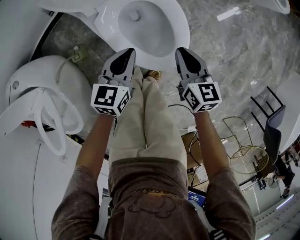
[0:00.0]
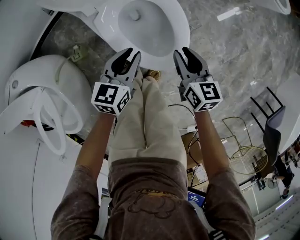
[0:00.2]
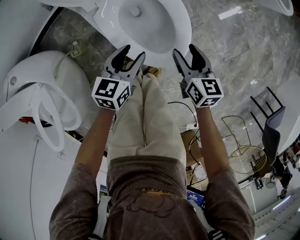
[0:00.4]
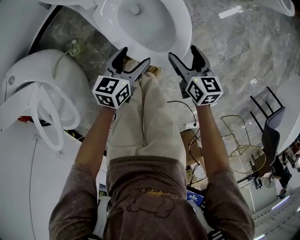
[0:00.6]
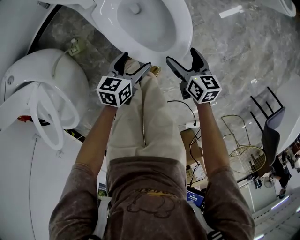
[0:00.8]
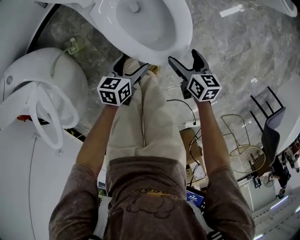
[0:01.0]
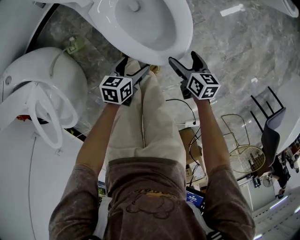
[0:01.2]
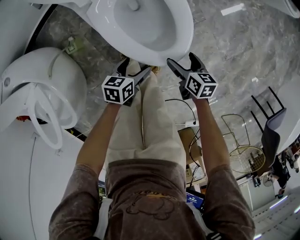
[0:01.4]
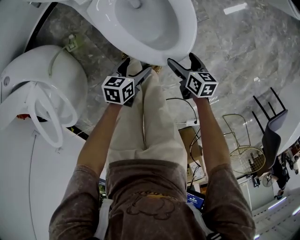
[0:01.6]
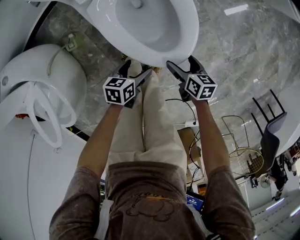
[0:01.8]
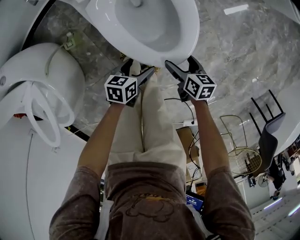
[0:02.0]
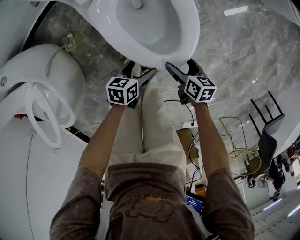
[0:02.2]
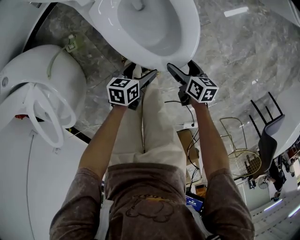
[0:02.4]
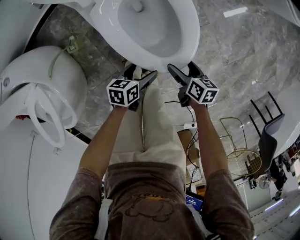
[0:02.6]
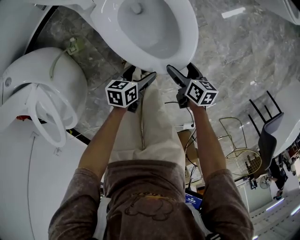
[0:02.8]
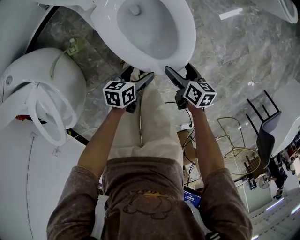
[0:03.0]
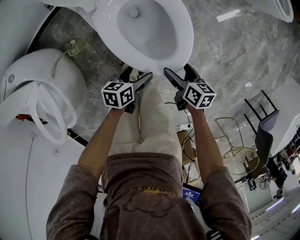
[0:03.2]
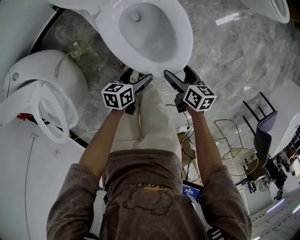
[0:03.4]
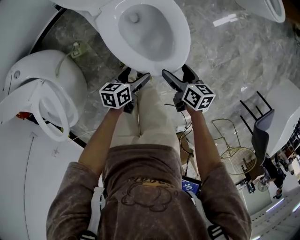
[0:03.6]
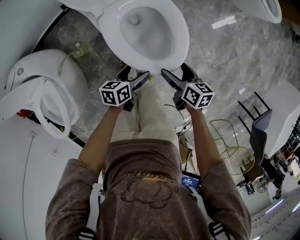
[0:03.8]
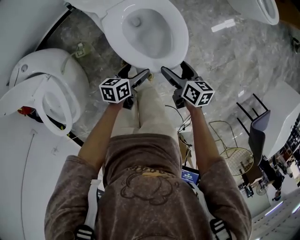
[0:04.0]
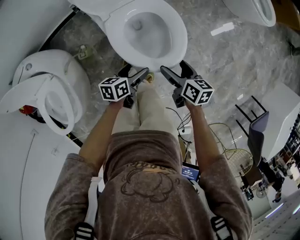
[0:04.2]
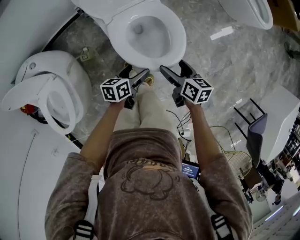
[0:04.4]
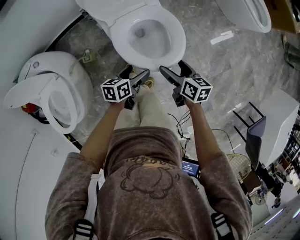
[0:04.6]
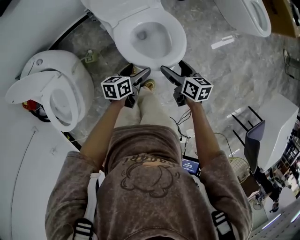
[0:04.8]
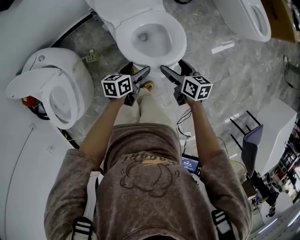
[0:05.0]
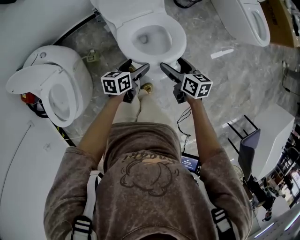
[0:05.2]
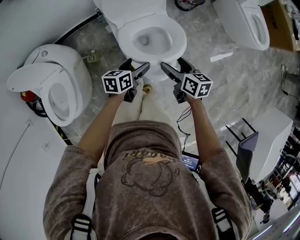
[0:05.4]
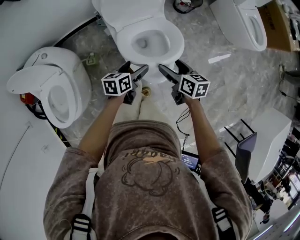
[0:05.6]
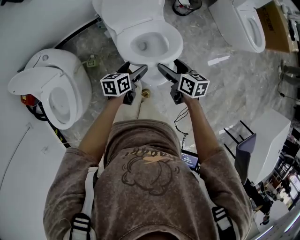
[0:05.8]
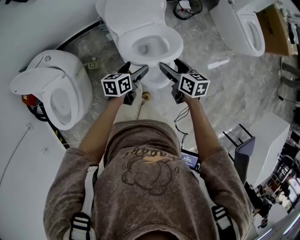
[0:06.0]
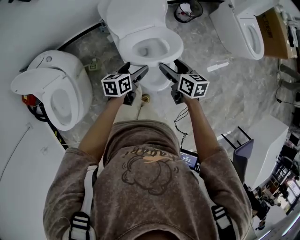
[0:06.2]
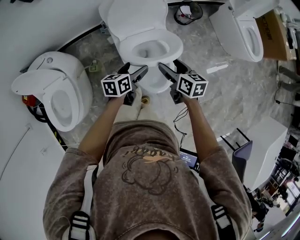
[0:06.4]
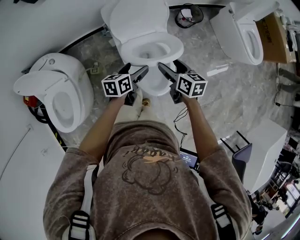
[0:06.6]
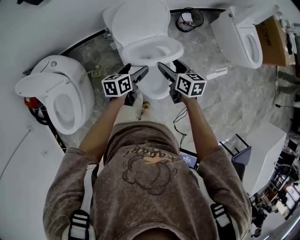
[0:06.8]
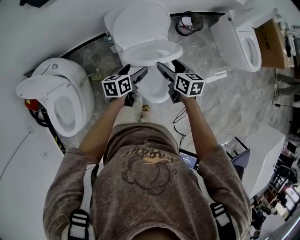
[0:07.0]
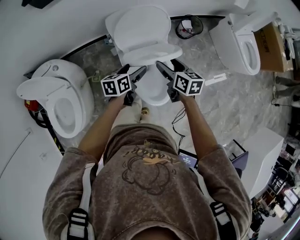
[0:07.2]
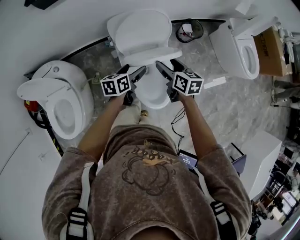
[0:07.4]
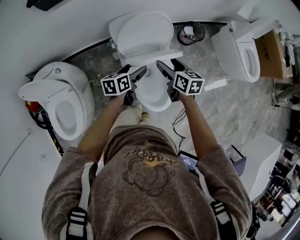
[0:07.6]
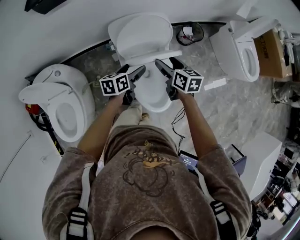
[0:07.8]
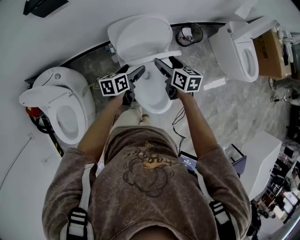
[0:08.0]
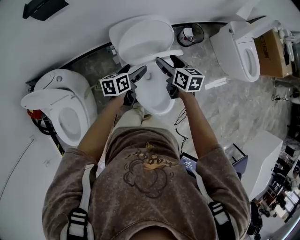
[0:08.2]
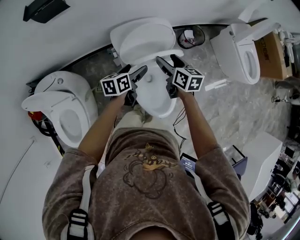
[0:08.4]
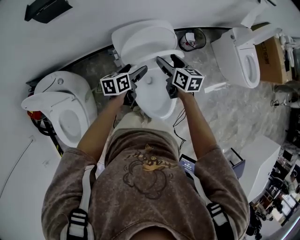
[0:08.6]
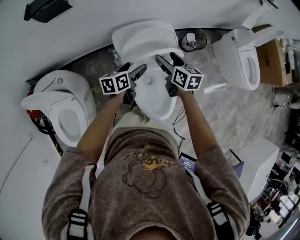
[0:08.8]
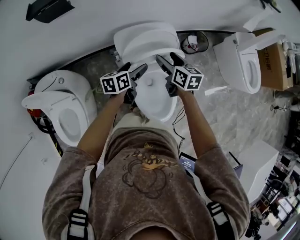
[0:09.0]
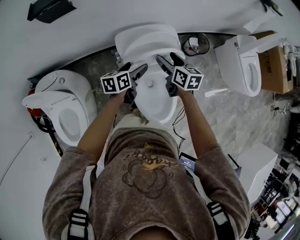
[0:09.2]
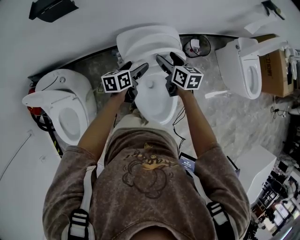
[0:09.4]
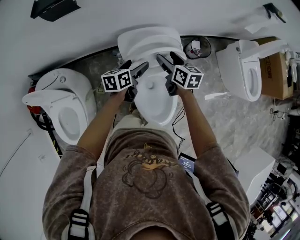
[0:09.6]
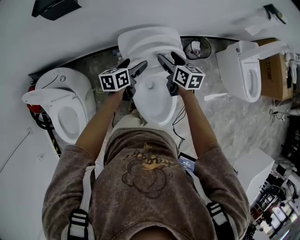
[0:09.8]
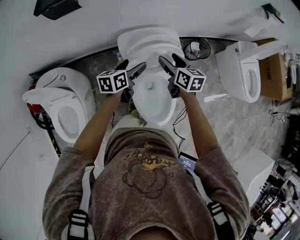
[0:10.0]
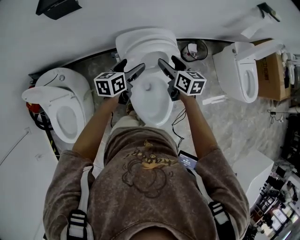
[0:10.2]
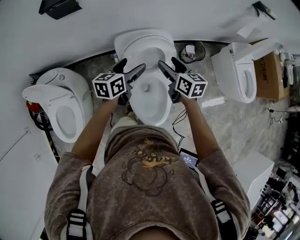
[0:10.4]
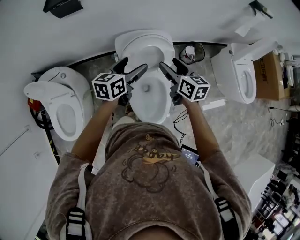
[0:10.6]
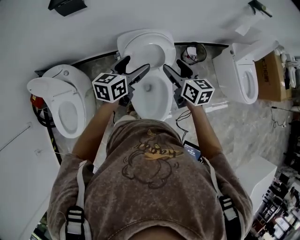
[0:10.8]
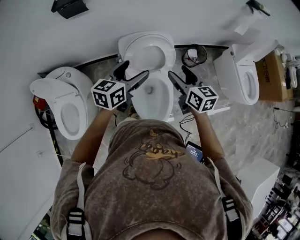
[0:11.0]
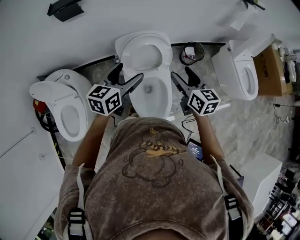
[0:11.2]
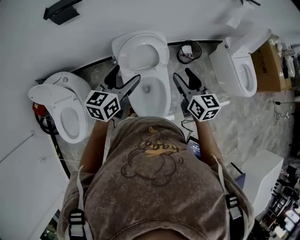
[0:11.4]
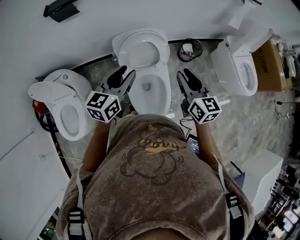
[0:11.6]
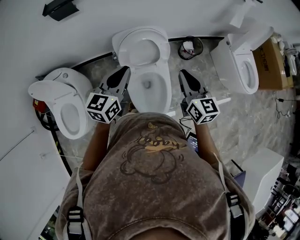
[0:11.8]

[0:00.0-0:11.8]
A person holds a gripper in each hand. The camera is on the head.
0:00.0 to 0:01.4: The two grippers go some 20 cm downward and backward. The left gripper rotates some 30 degrees, and opens its fingers. Meanwhile the right gripper swivels approximately 20 degrees, and opens its fingers.
0:01.4 to 0:03.0: There are only small adjustments of the grippers.
0:03.0 to 0:04.4: The two grippers go approximately 20 cm upward.
0:04.4 to 0:06.0: Both grippers move upward and forward, some 10 cm.
0:06.0 to 0:07.4: The left gripper shifts roughly 10 cm forward. Meanwhile the right gripper goes approximately 15 cm forward and upward.
0:07.4 to 0:08.8: Both grippers travel together forward, approximately 10 cm.
0:08.8 to 0:10.4: The left gripper is displaced upward by roughly 10 cm, while the right gripper is displaced upward by some 5 cm.
0:10.4 to 0:11.8: The right gripper shifts about 20 cm backward, upward and to the right, rotates about 20 degrees, and closes its fingers. The left gripper is displaced upward and backward by about 15 cm, rotates some 20 degrees, and closes its fingers.

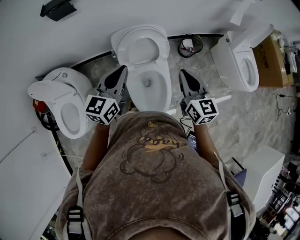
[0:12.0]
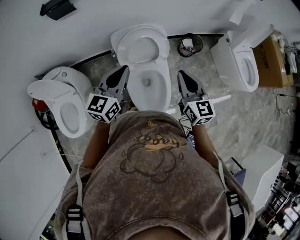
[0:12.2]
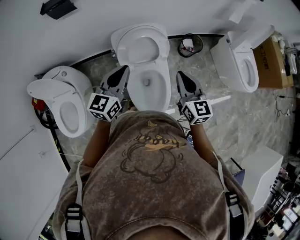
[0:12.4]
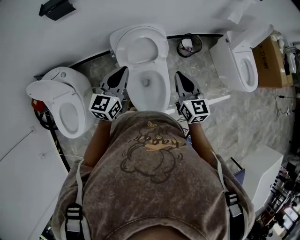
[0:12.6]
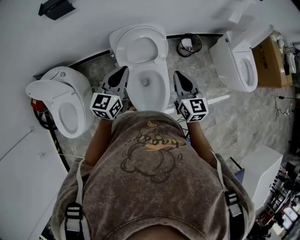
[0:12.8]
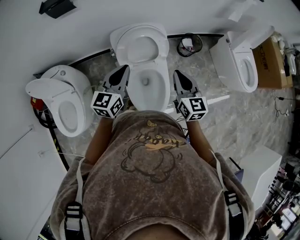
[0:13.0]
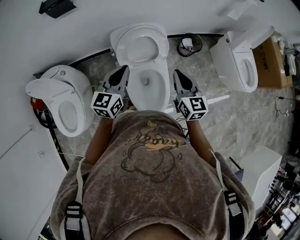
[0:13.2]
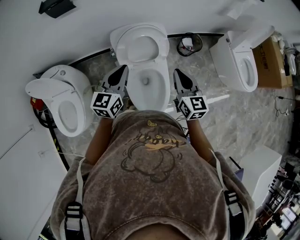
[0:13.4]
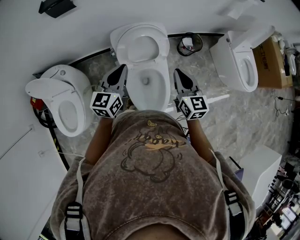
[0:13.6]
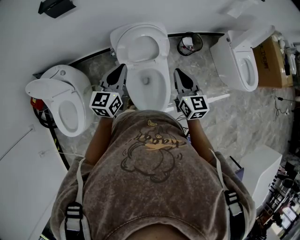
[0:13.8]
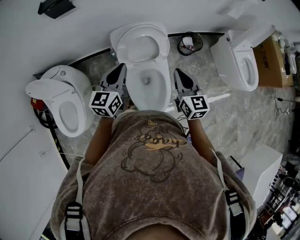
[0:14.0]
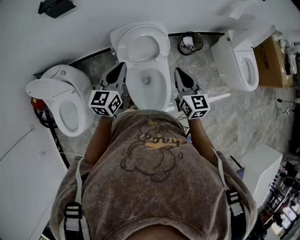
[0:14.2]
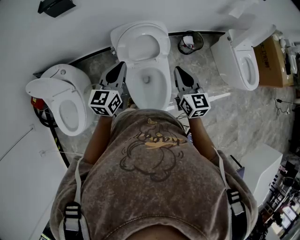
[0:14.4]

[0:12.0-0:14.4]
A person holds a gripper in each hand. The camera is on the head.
0:12.0 to 0:13.2: The left gripper moves downward, roughly 5 cm.
0:13.2 to 0:14.4: There are only small adjustments of the grippers.

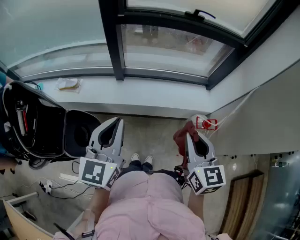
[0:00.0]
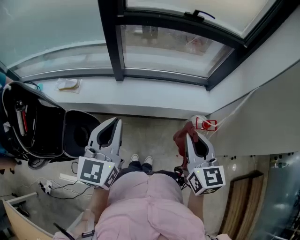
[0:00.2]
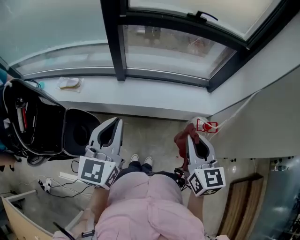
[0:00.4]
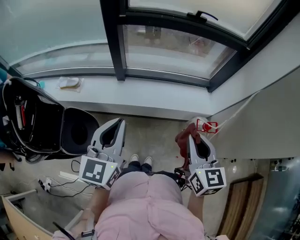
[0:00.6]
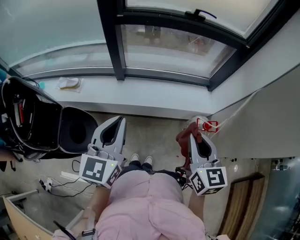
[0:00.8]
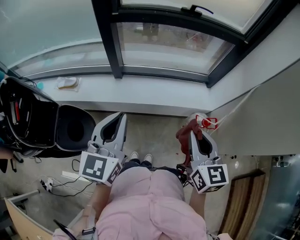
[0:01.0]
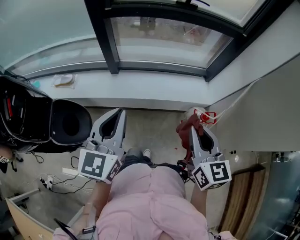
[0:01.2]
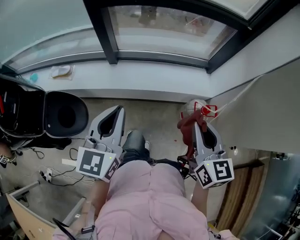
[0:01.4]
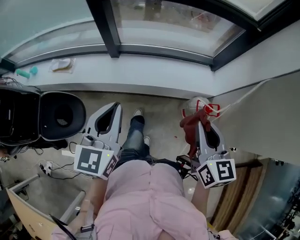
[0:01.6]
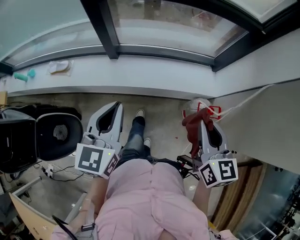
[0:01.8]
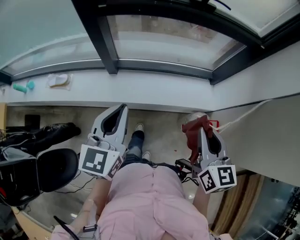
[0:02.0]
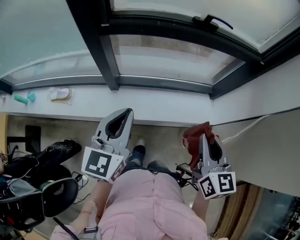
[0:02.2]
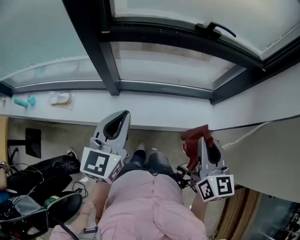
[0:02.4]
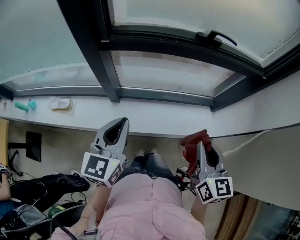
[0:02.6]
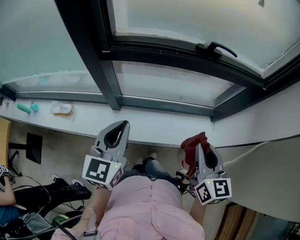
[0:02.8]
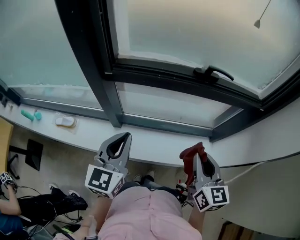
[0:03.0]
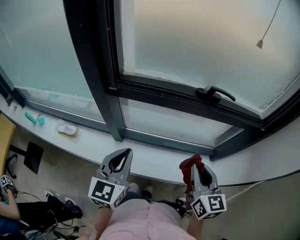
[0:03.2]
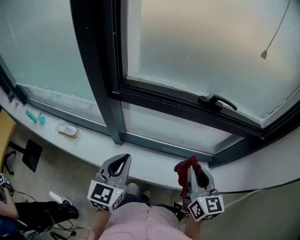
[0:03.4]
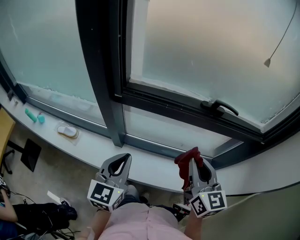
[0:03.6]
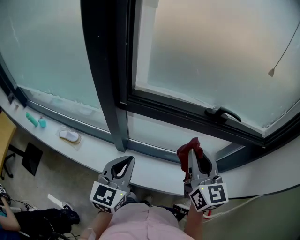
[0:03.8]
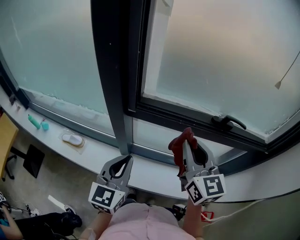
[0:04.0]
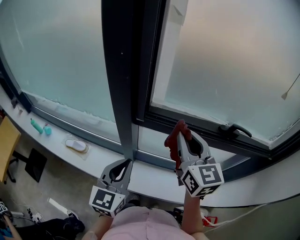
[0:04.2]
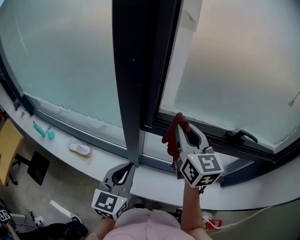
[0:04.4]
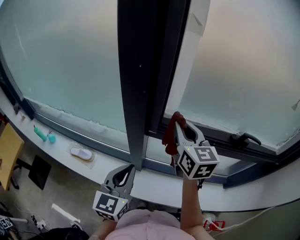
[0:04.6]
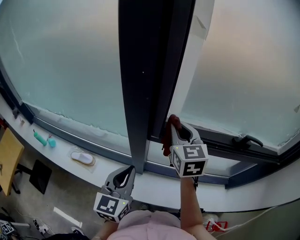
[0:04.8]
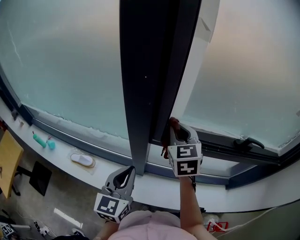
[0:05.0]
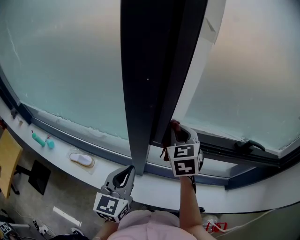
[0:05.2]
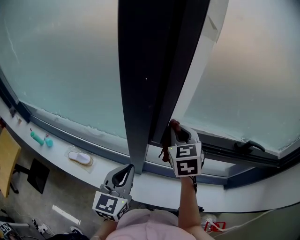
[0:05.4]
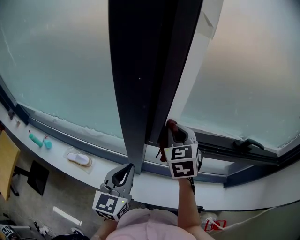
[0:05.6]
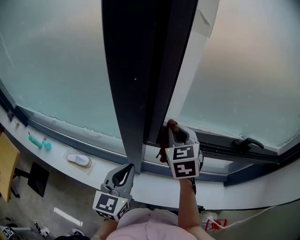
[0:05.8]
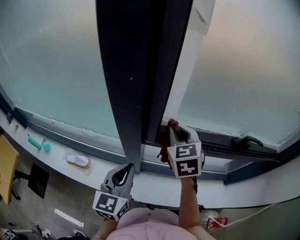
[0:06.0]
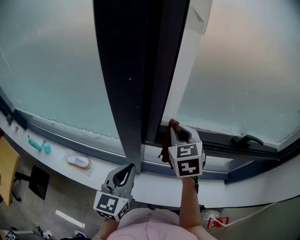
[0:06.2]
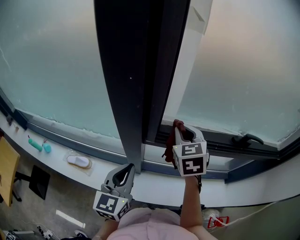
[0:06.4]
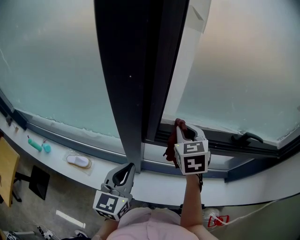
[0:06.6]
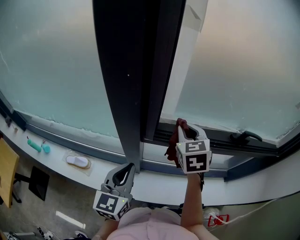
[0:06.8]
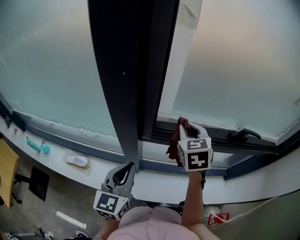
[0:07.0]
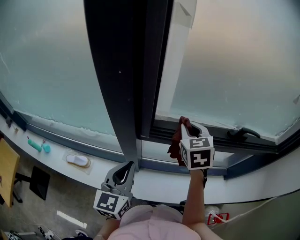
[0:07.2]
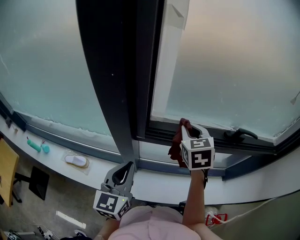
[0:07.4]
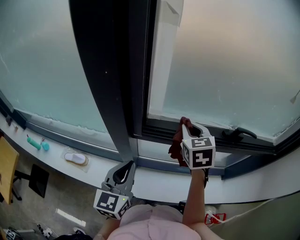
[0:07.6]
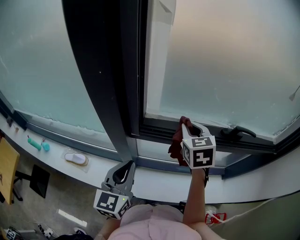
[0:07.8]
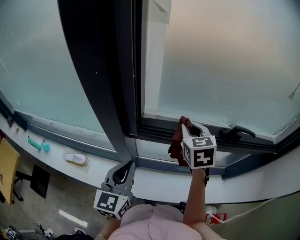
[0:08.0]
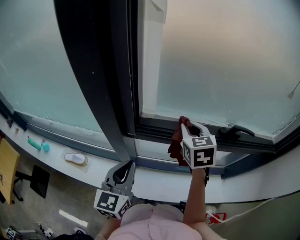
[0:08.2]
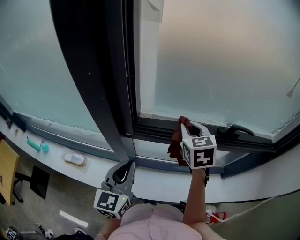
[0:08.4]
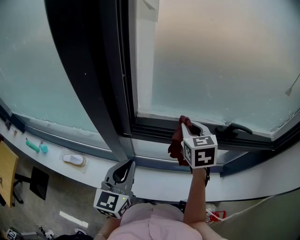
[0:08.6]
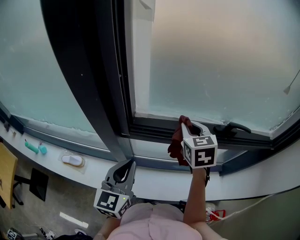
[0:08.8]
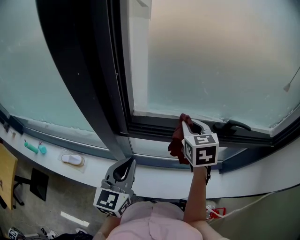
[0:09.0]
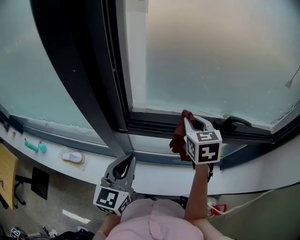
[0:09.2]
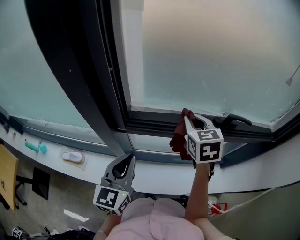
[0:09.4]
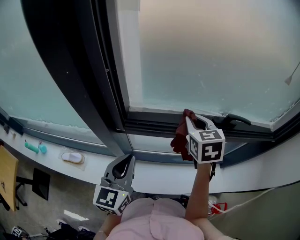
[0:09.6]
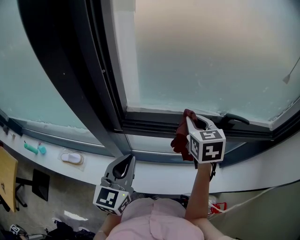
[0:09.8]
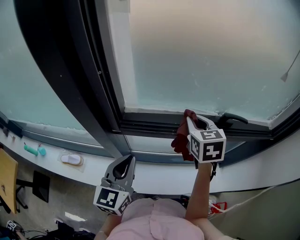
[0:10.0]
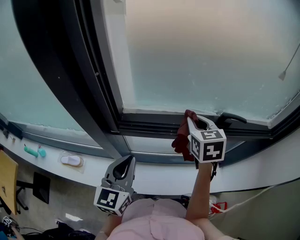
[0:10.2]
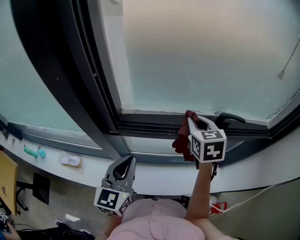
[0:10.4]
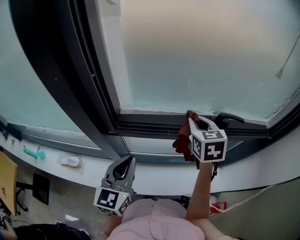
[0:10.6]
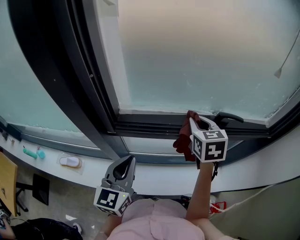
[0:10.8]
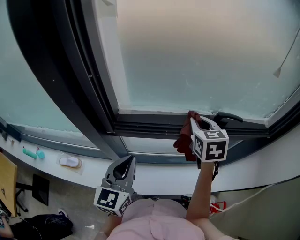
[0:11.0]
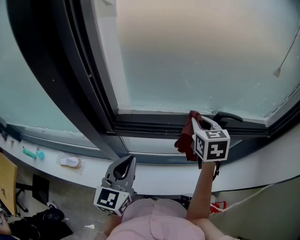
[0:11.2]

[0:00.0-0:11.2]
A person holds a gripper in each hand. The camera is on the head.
0:00.0 to 0:01.6: The left gripper shifts roughly 5 cm to the right and forward. The right gripper is displaced to the right by roughly 10 cm.
0:01.6 to 0:03.2: Both grippers travel together forward, some 30 cm.
0:03.2 to 0:04.8: The right gripper heads forward and to the left, covering roughly 40 cm; the left gripper goes approximately 20 cm to the left and forward.
0:04.8 to 0:06.4: The right gripper shifts by about 5 cm.
0:06.4 to 0:08.0: The two grippers go roughly 10 cm to the right.
0:08.0 to 0:09.6: The right gripper heads to the right, covering approximately 5 cm.
0:09.6 to 0:11.2: The right gripper is displaced to the right by approximately 5 cm.
